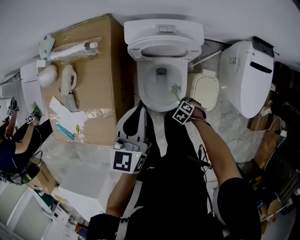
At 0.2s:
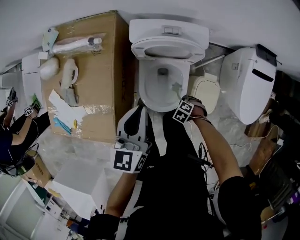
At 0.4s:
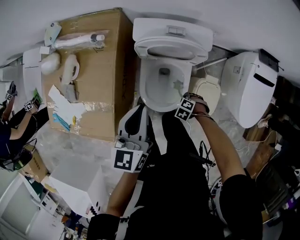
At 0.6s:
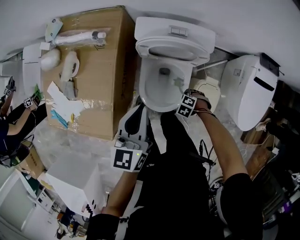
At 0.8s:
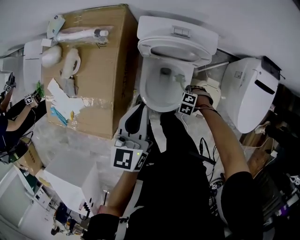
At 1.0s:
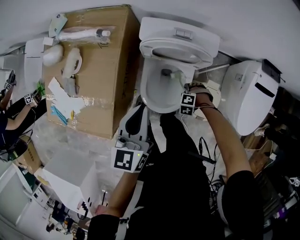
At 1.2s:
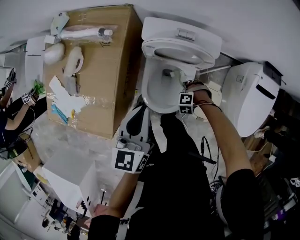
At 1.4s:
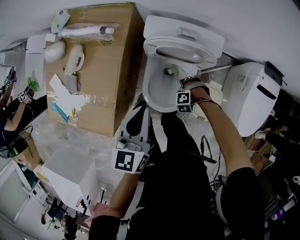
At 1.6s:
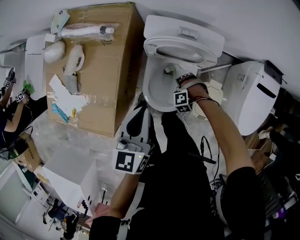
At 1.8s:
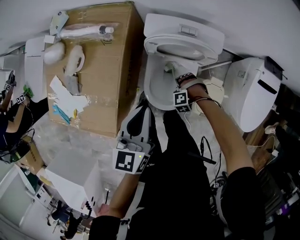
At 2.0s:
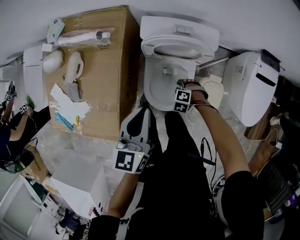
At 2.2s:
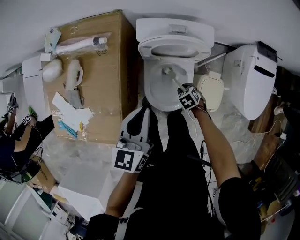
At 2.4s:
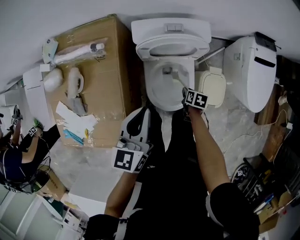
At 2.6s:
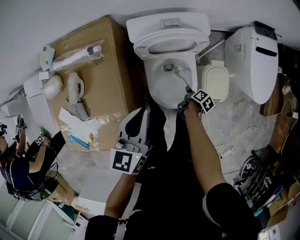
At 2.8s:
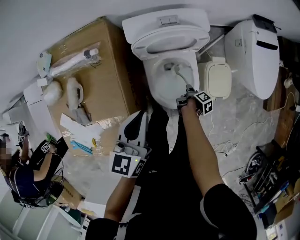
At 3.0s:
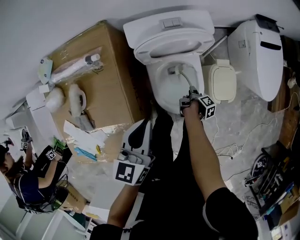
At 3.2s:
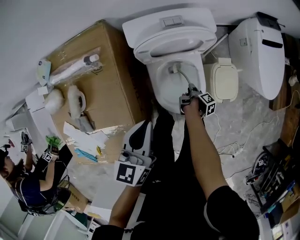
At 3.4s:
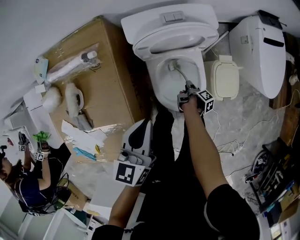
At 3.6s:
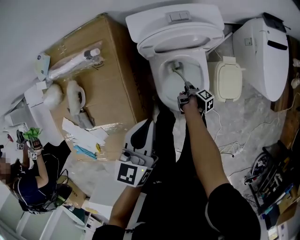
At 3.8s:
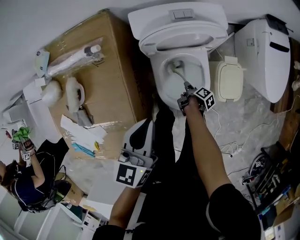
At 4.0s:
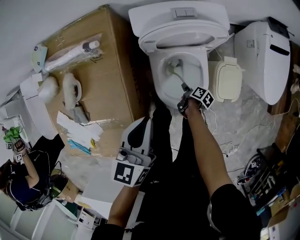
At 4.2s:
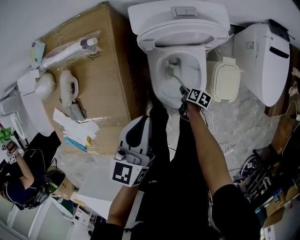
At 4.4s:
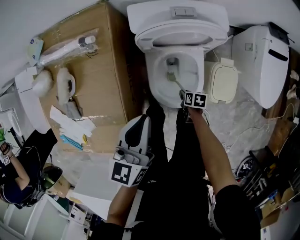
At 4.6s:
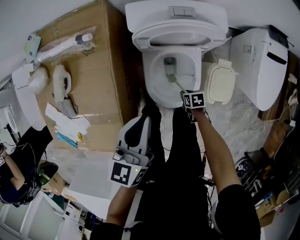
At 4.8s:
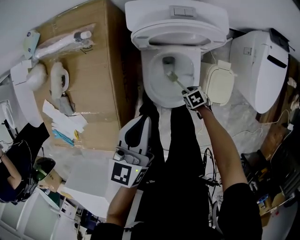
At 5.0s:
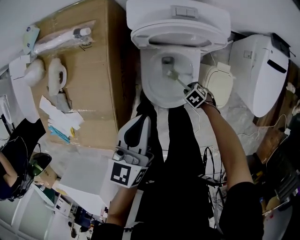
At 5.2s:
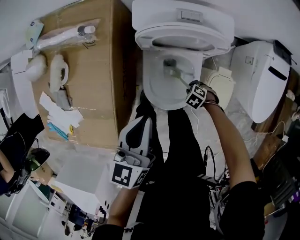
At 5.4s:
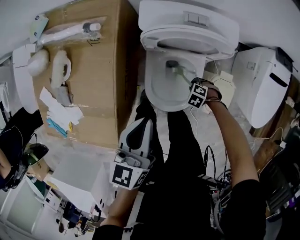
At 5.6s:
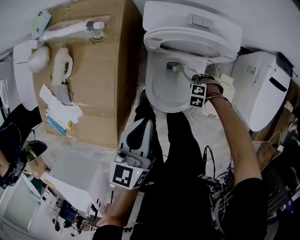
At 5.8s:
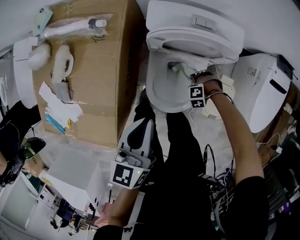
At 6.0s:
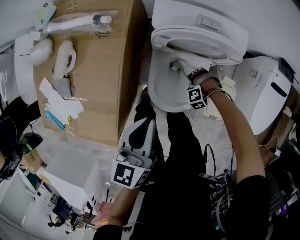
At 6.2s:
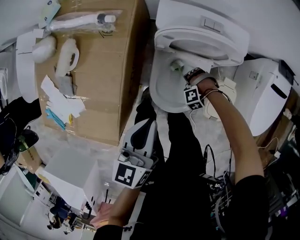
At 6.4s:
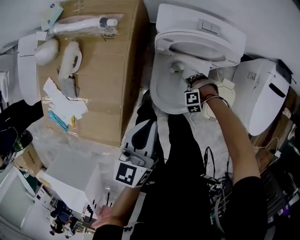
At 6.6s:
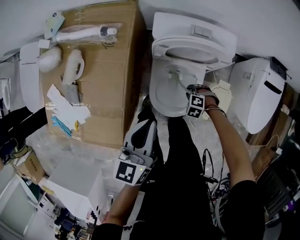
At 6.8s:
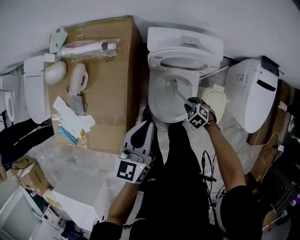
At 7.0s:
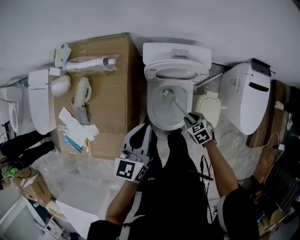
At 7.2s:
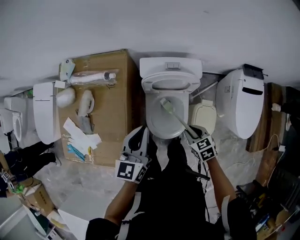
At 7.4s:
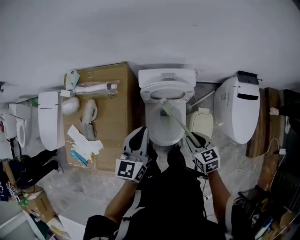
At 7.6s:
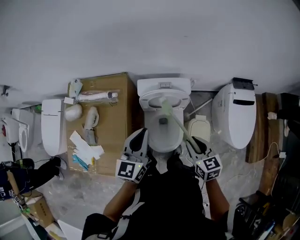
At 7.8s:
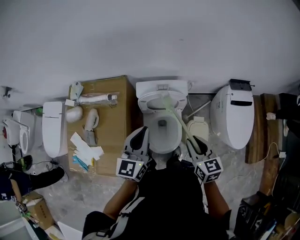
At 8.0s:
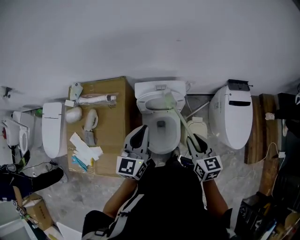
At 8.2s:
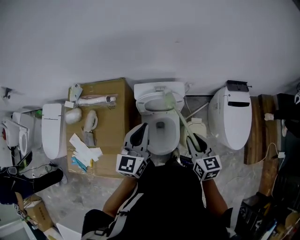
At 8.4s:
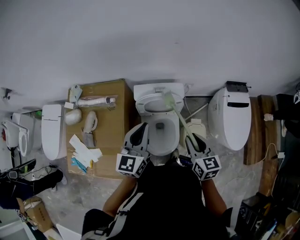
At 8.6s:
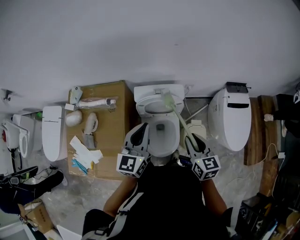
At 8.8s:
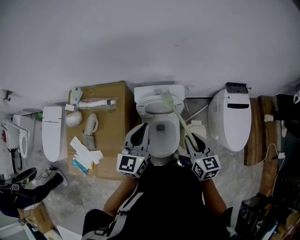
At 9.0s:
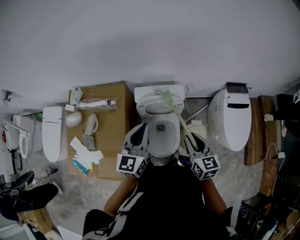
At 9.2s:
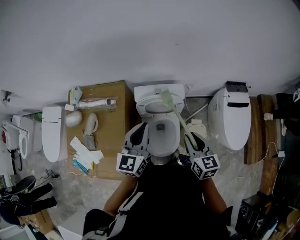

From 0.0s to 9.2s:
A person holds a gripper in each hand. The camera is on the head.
From 1.6s to 3.0s: The left gripper changes place by some 5 cm, and changes its angle by some 30 degrees.
From 6.2s to 7.6s: The left gripper is displaced upward by some 25 cm, and swivels some 20 degrees.

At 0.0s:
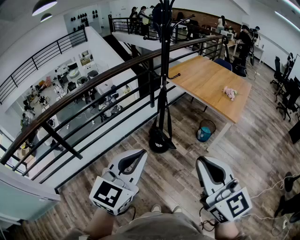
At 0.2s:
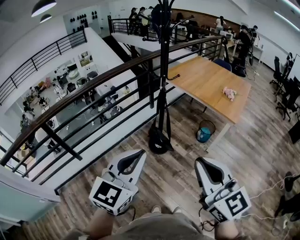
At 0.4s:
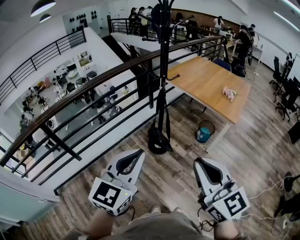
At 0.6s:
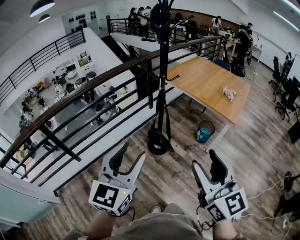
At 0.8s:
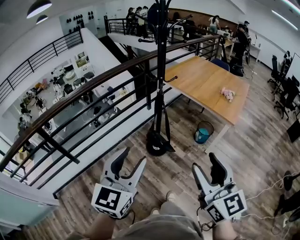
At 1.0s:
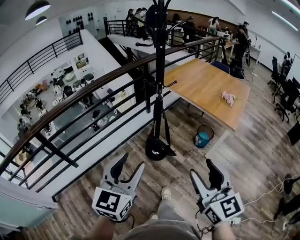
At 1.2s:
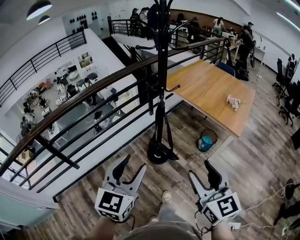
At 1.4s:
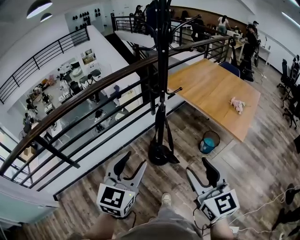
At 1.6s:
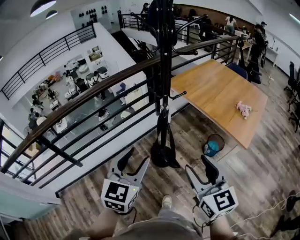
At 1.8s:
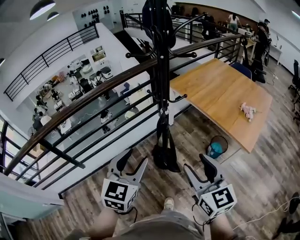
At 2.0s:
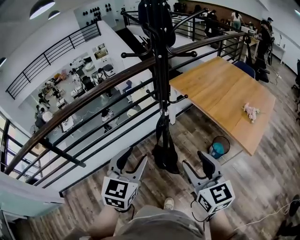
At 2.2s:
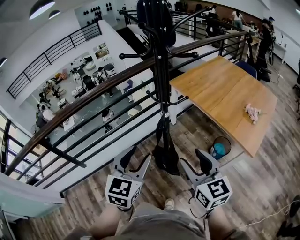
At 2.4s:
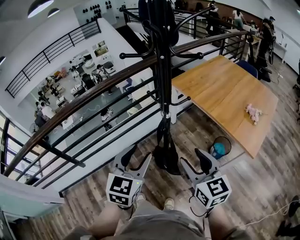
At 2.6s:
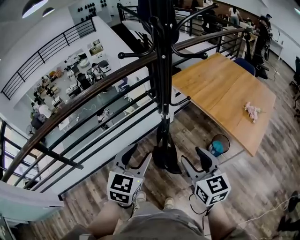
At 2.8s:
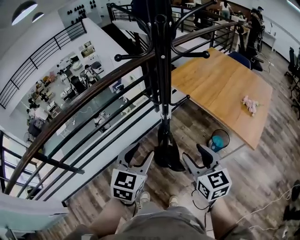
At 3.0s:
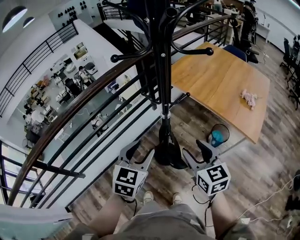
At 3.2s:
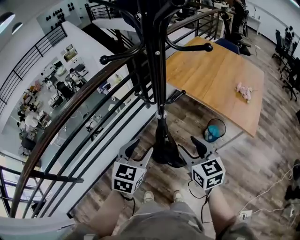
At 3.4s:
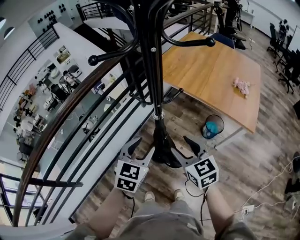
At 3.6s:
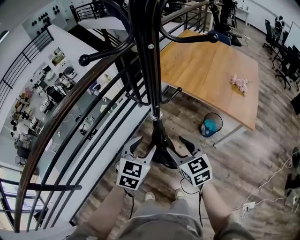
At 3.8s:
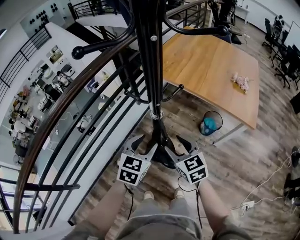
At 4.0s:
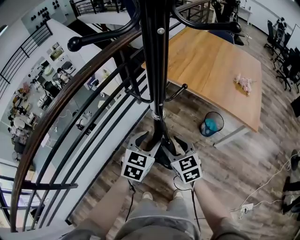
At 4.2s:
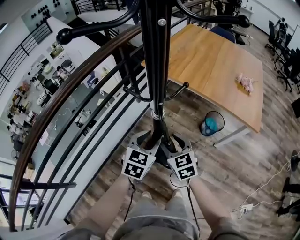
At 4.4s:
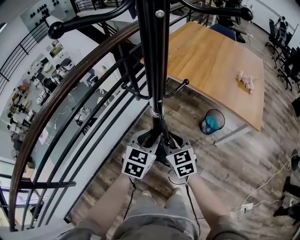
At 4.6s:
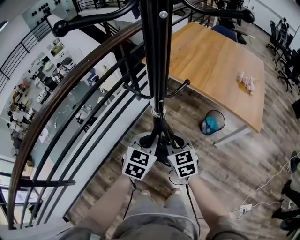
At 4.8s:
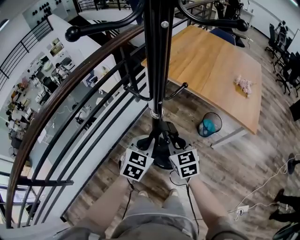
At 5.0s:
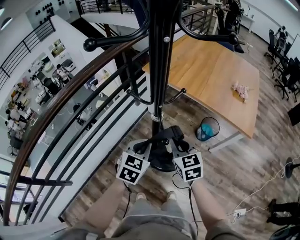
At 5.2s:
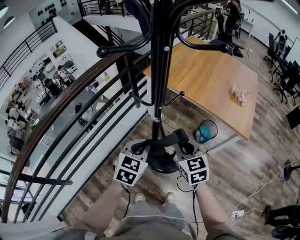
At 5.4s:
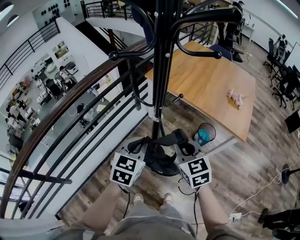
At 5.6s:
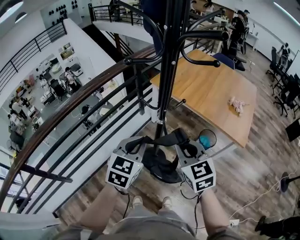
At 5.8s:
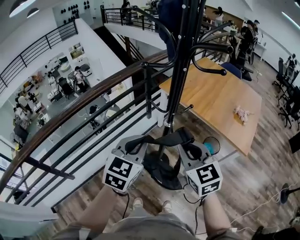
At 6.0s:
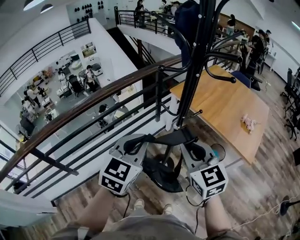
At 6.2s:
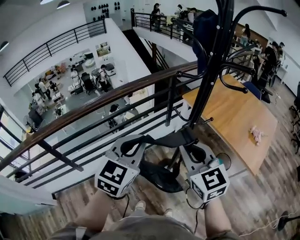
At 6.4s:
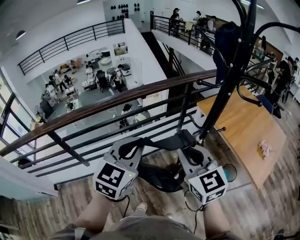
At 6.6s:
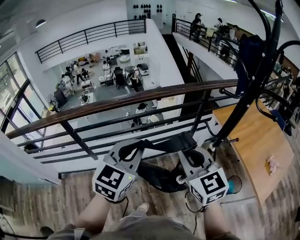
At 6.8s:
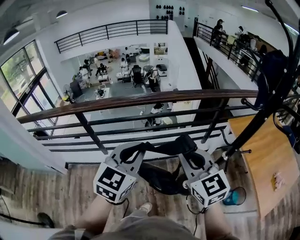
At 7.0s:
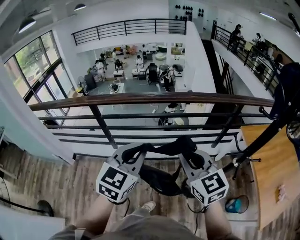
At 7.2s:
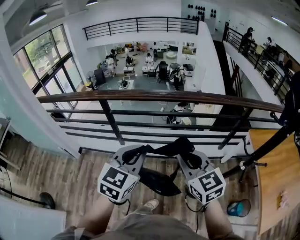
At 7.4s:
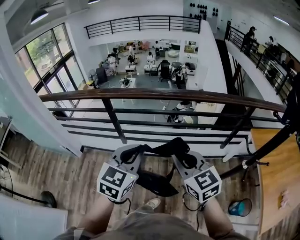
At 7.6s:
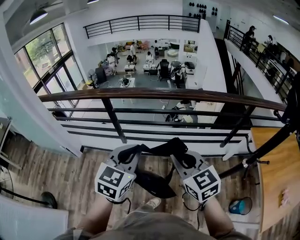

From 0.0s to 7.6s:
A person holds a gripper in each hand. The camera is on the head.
From 0.0s to 1.6s: Both grippers travel together forward, roughly 20 cm. The left gripper opens. The right gripper opens.
From 1.6s to 3.0s: Both grippers travel together forward and downward, about 20 cm.
From 3.0s to 4.6s: The right gripper goes approximately 20 cm downward, forward and to the left, and closes. The left gripper shifts some 20 cm downward and forward, and closes up.
From 4.6s to 6.0s: The left gripper moves upward and backward, about 30 cm, and rotates roughly 20 degrees, while the right gripper is displaced upward by some 30 cm, and rotates some 30 degrees.
From 6.0s to 7.6s: The left gripper changes place by approximately 30 cm, and changes its angle by approximately 50 degrees. The right gripper changes place by some 30 cm, and swivels approximately 50 degrees.

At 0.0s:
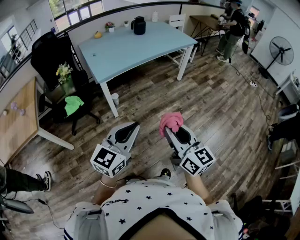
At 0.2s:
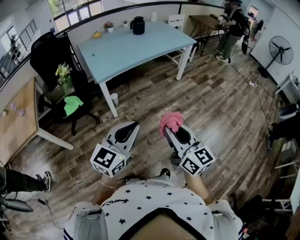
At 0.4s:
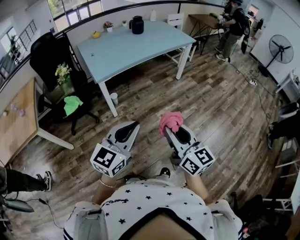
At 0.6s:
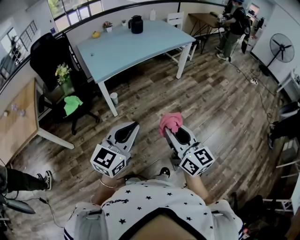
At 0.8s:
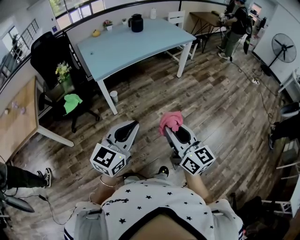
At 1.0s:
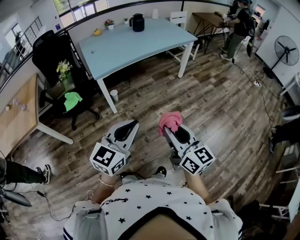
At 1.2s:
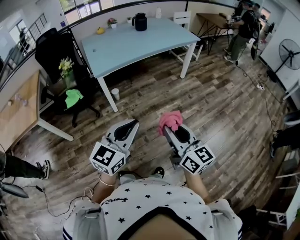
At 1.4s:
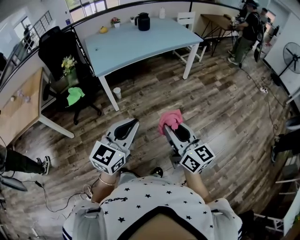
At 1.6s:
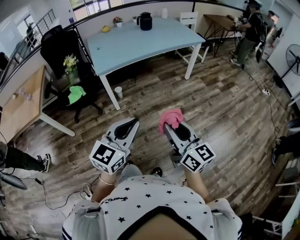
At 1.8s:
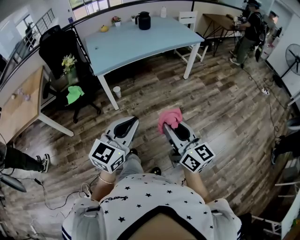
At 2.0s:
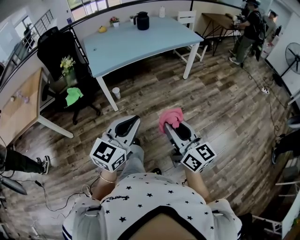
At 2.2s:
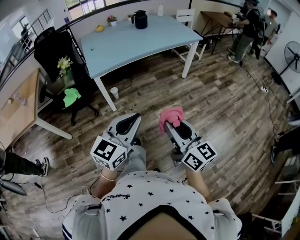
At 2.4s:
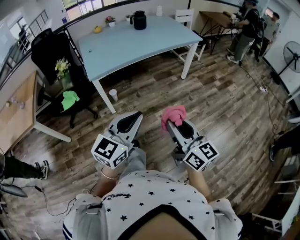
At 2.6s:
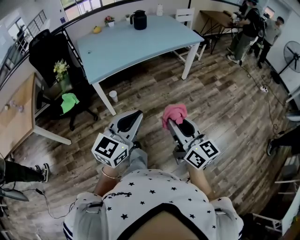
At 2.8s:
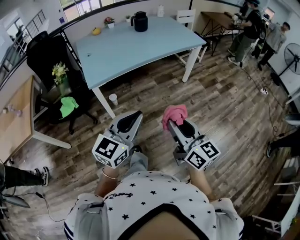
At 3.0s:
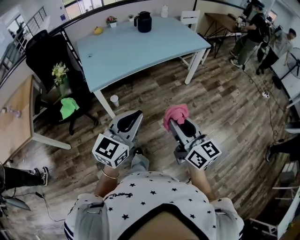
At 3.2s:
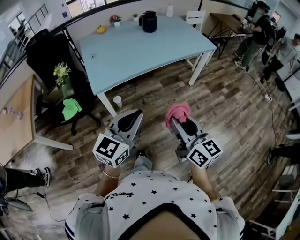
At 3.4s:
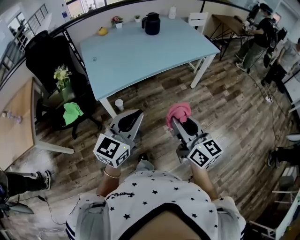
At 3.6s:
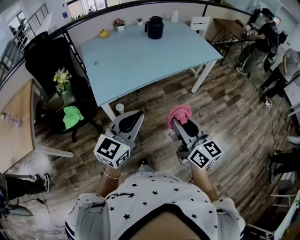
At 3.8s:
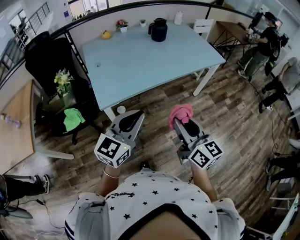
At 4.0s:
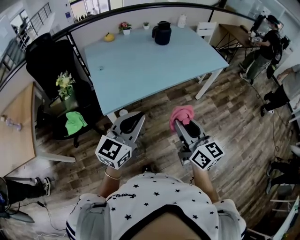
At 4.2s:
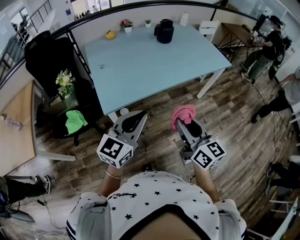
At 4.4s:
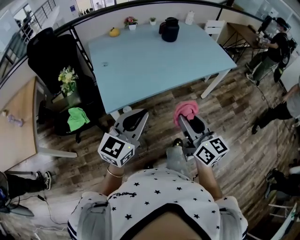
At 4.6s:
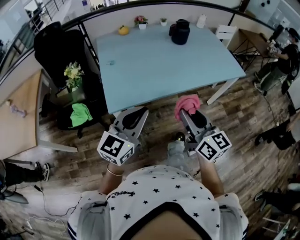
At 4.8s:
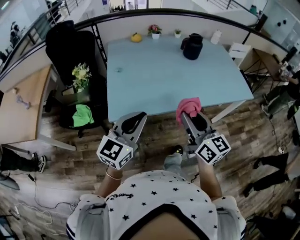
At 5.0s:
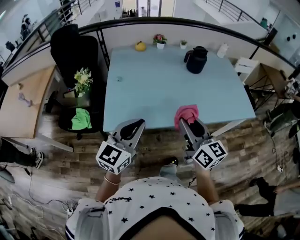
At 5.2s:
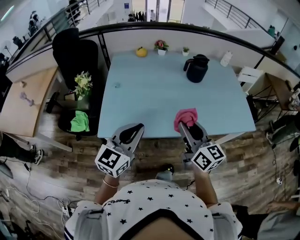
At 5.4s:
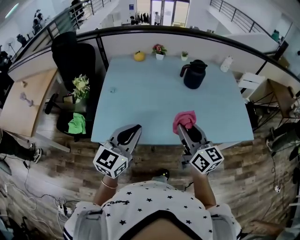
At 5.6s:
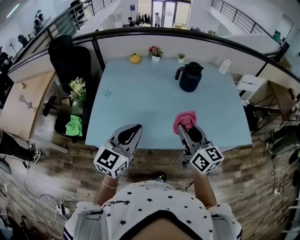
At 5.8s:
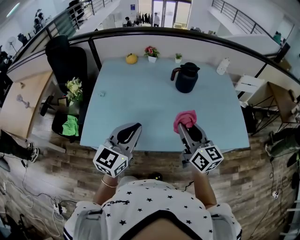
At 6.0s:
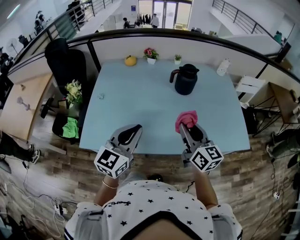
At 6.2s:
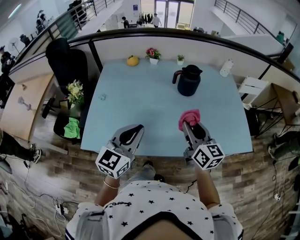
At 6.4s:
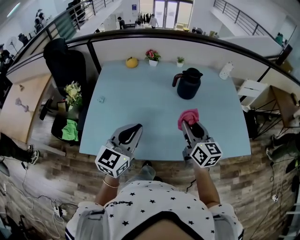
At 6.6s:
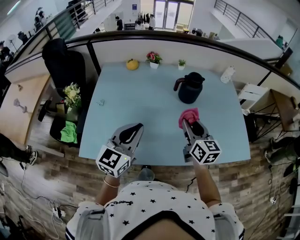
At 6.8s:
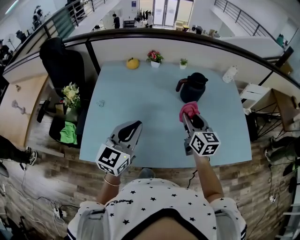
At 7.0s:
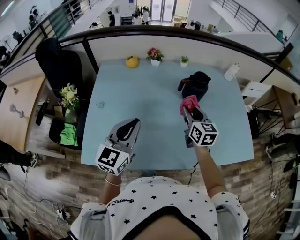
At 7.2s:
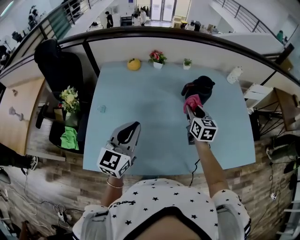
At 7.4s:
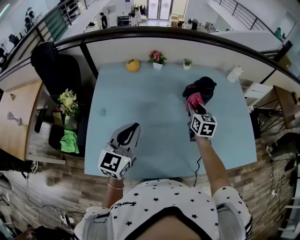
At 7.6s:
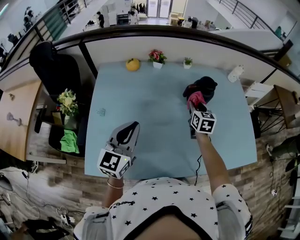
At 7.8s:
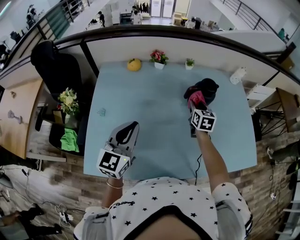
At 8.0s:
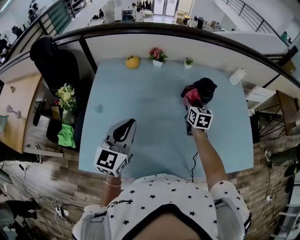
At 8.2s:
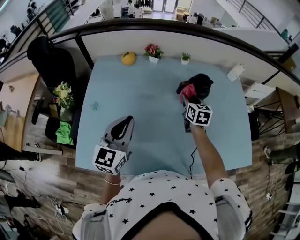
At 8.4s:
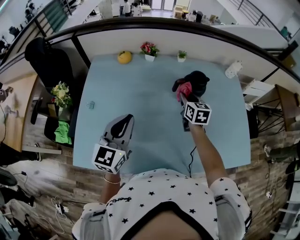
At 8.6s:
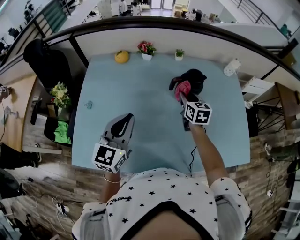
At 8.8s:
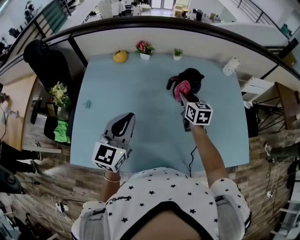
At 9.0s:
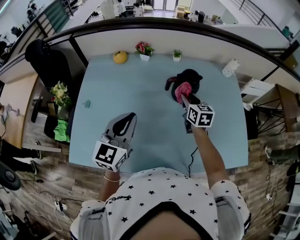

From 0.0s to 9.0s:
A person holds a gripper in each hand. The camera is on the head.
From 0.0s to 1.6s: Both grippers travel together to the right, about 10 cm.
From 1.6s to 3.0s: The two grippers go roughly 20 cm forward.
From 3.0s to 4.4s: The grippers both shift forward and to the left by approximately 25 cm.
From 4.4s to 6.0s: Both grippers travel together forward and to the right, about 35 cm. The left gripper rotates about 30 degrees.
From 6.0s to 7.6s: The left gripper goes roughly 20 cm forward and to the left, while the right gripper travels forward and downward by about 30 cm, and turns by roughly 30 degrees.
From 7.6s to 9.0s: The right gripper goes approximately 5 cm to the right. Meanwhile the left gripper is displaced to the right by roughly 10 cm.
